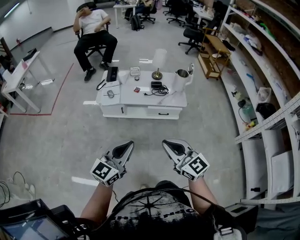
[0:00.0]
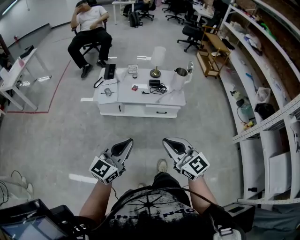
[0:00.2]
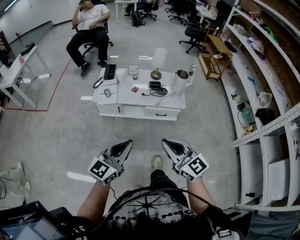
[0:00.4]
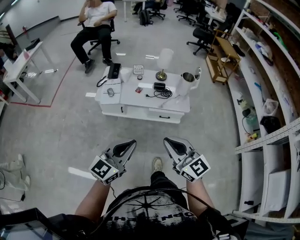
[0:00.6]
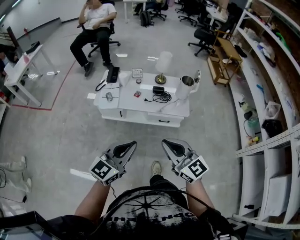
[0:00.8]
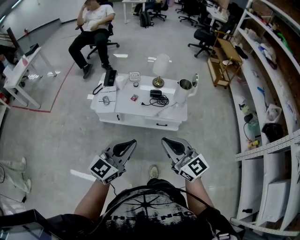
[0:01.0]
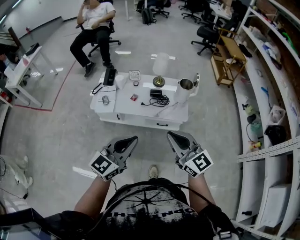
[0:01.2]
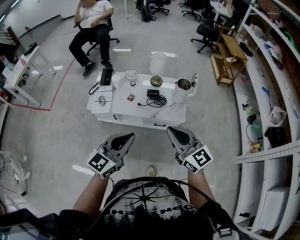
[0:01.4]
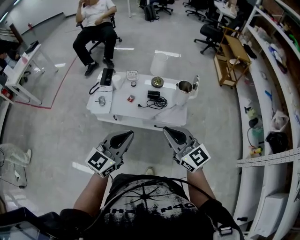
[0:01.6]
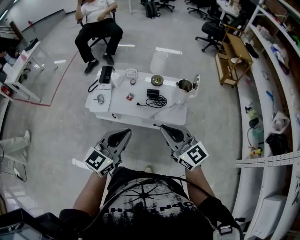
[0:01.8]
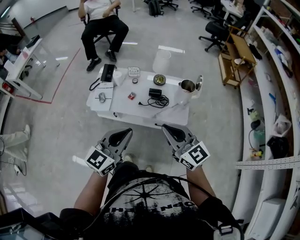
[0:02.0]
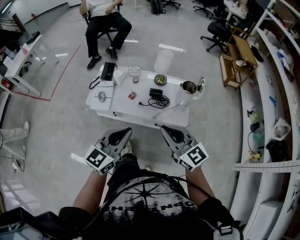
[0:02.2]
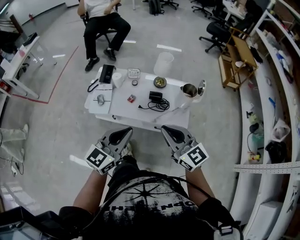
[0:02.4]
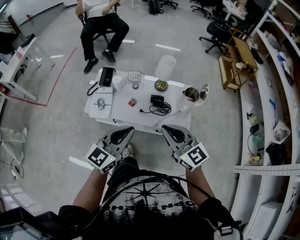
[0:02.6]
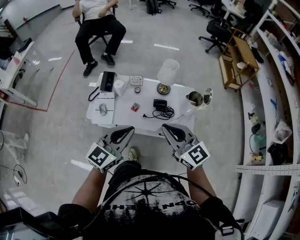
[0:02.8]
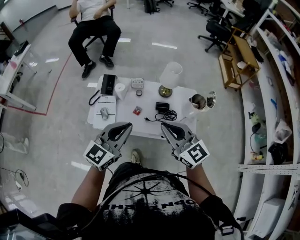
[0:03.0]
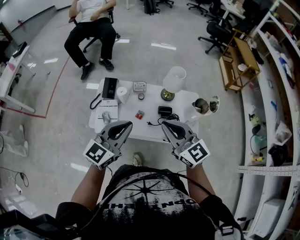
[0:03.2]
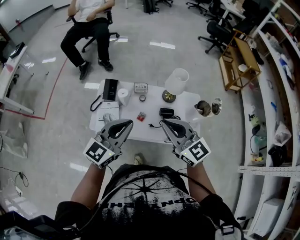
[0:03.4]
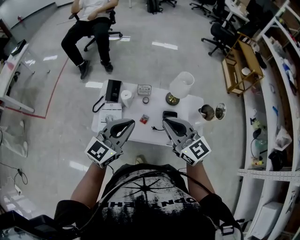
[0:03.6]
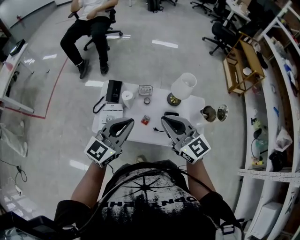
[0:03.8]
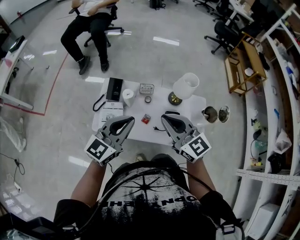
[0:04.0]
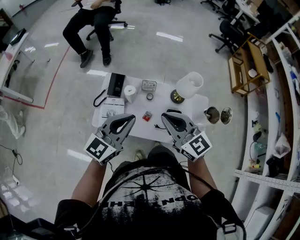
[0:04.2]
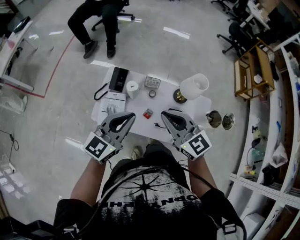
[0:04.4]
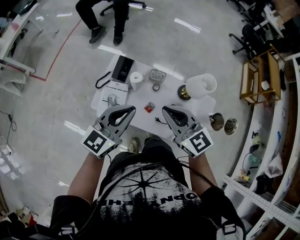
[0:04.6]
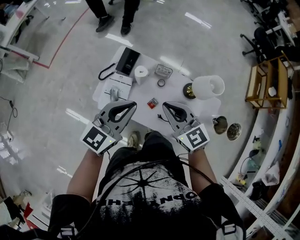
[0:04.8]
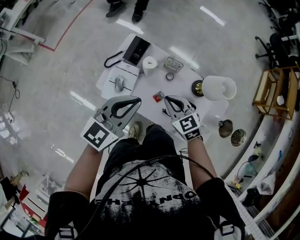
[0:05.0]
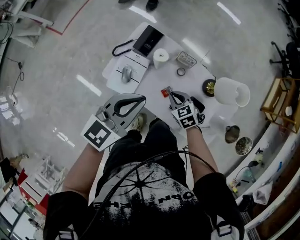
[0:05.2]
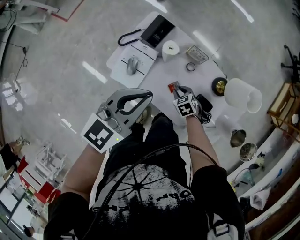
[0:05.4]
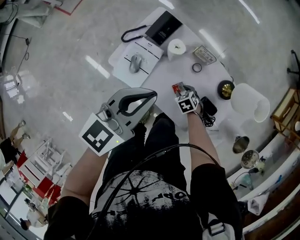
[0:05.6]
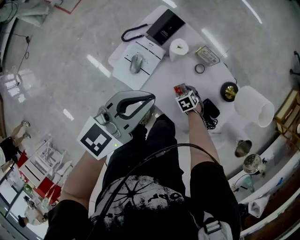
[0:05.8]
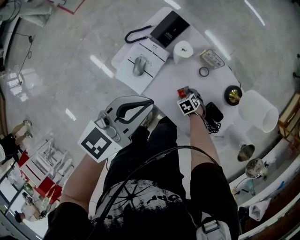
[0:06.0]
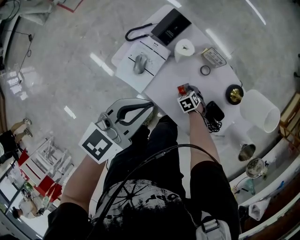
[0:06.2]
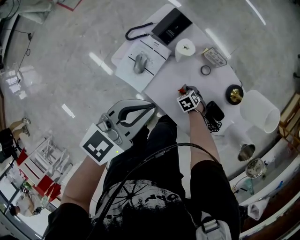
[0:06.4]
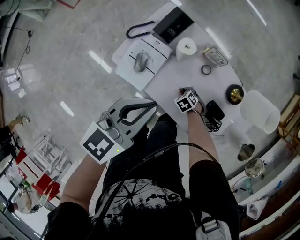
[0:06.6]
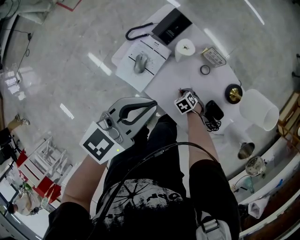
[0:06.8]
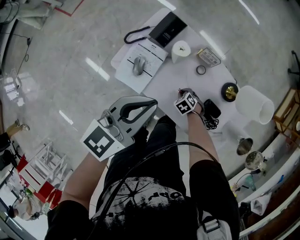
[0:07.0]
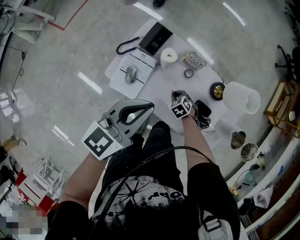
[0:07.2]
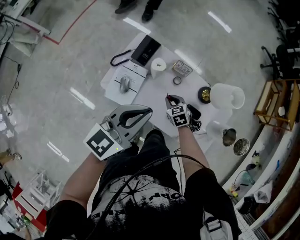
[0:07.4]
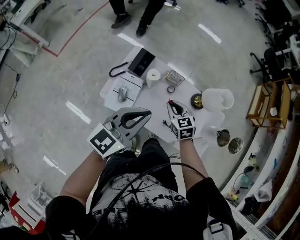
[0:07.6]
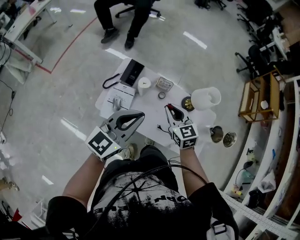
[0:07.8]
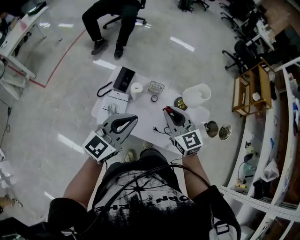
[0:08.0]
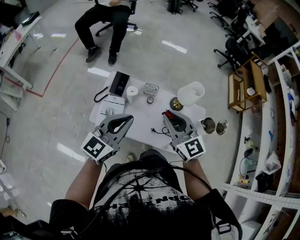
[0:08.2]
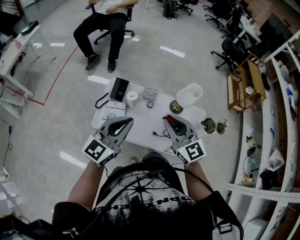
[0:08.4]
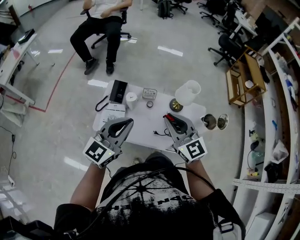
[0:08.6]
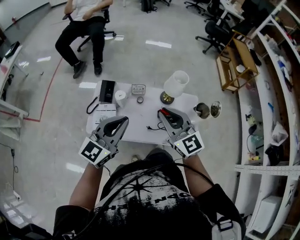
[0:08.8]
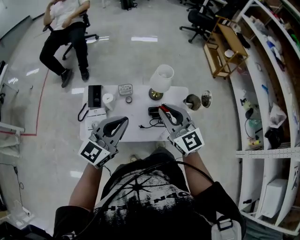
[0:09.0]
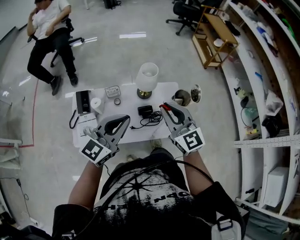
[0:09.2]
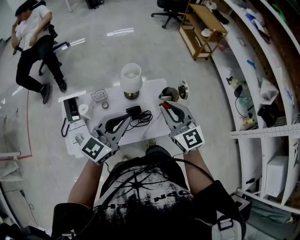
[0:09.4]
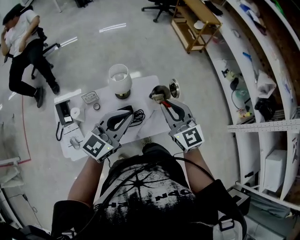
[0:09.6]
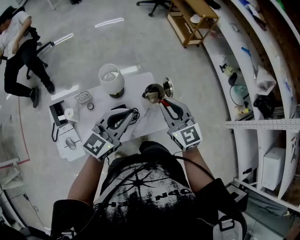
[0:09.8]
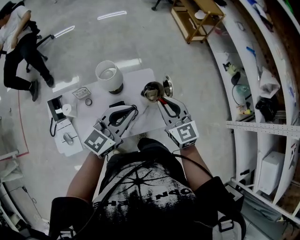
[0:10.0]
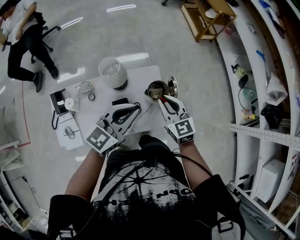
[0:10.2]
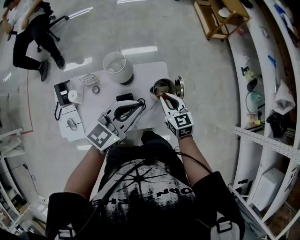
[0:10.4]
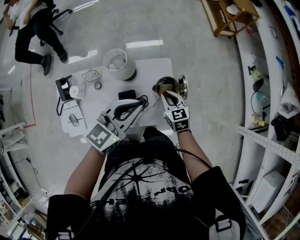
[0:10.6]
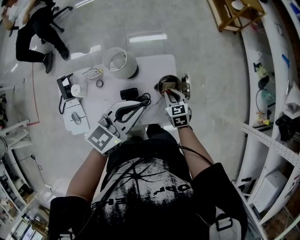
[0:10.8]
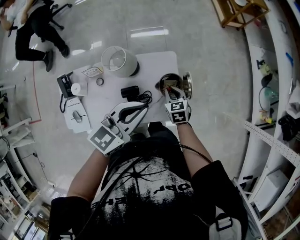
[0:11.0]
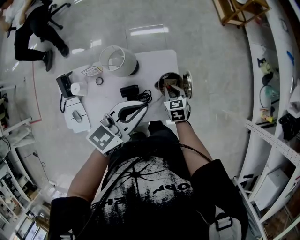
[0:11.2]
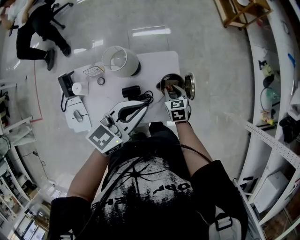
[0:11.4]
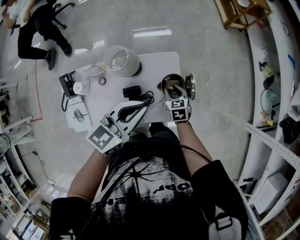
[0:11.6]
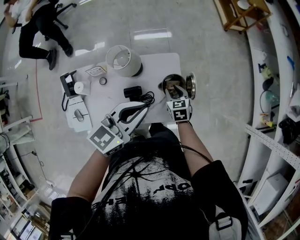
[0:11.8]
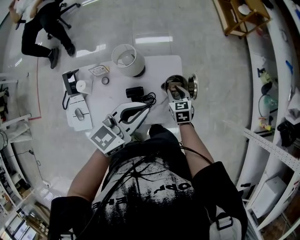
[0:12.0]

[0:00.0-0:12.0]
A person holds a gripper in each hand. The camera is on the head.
0.0 to 1.6 s: Both grippers travel together forward and to the right, approximately 35 cm.
1.6 to 3.0 s: The right gripper heads forward and to the left, covering roughly 25 cm. The left gripper shifts some 20 cm forward.
3.0 to 4.4 s: The grippers both shift forward and to the left by some 20 cm.
4.4 to 6.0 s: The right gripper goes approximately 60 cm downward, points its fingers approximately 70 degrees further downward, and opens up. The left gripper travels downward by approximately 15 cm, and rotates some 30 degrees.
6.0 to 7.6 s: The left gripper is displaced upward by approximately 10 cm, and turns by about 20 degrees. The right gripper is displaced upward by approximately 35 cm, angles its fingers upward, by roughly 40 degrees, and closes up.
7.6 to 9.0 s: The left gripper heads to the right and upward, covering about 10 cm, and turns by roughly 20 degrees. Meanwhile the right gripper is displaced upward, to the right and backward by about 35 cm, and angles its fingers upward, by some 40 degrees.
9.0 to 10.4 s: The right gripper is displaced to the right, downward and forward by some 40 cm, and changes its angle by some 30 degrees. Meanwhile the left gripper heads to the right and forward, covering about 35 cm, and turns by approximately 20 degrees.
10.4 to 12.0 s: The right gripper travels downward by about 10 cm.

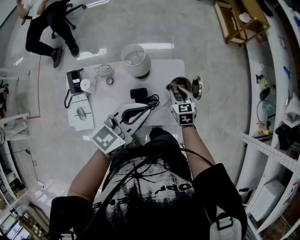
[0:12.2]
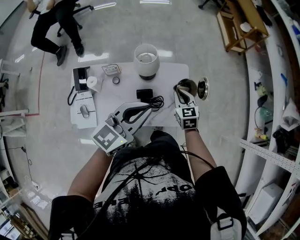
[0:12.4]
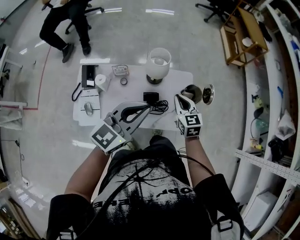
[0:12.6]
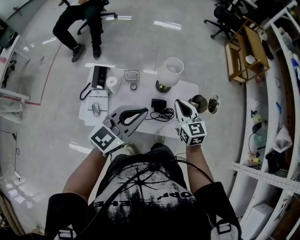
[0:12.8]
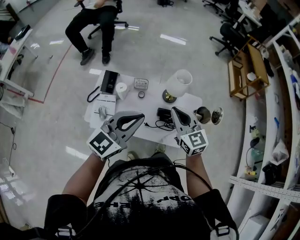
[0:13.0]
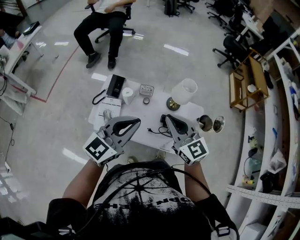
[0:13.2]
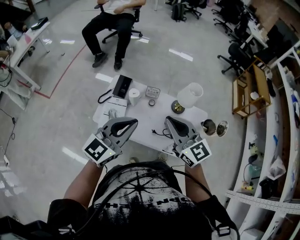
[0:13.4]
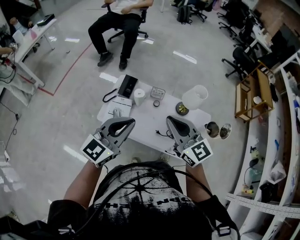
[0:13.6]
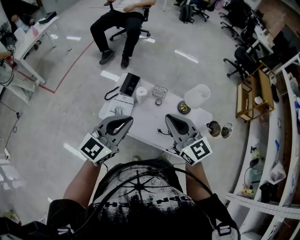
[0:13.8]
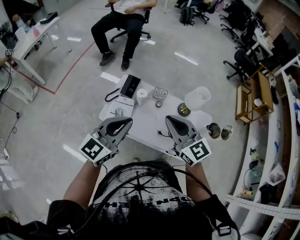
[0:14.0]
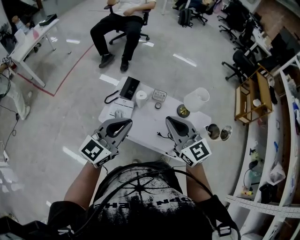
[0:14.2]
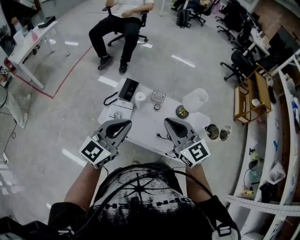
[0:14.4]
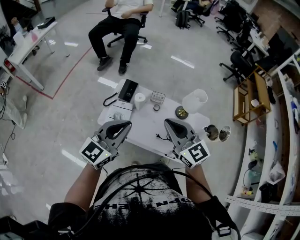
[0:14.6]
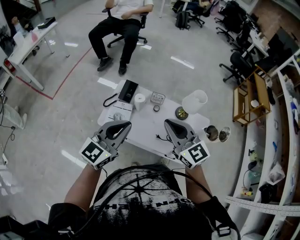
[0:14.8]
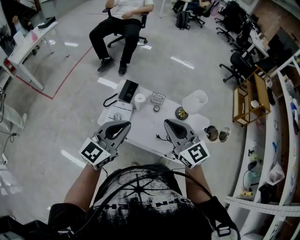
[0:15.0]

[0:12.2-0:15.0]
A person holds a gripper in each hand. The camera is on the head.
12.2 to 13.6 s: The two grippers travel together, roughly 40 cm. The right gripper points its fingers about 40 degrees further upward, and closes; the left gripper changes its angle by about 30 degrees.
13.6 to 15.0 s: The grippers stay close to where they were, moving slightly.

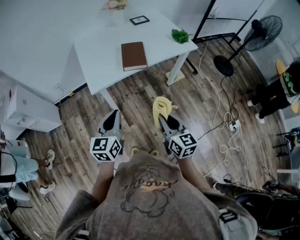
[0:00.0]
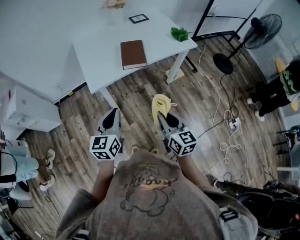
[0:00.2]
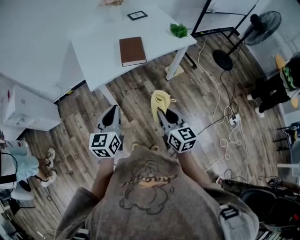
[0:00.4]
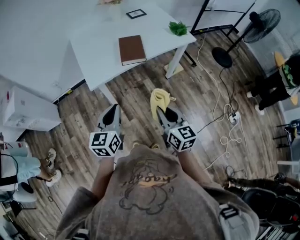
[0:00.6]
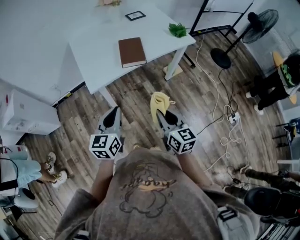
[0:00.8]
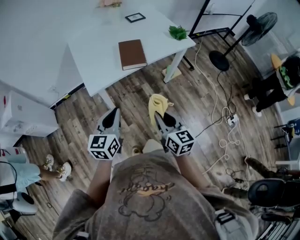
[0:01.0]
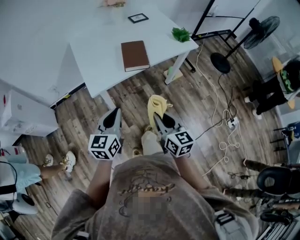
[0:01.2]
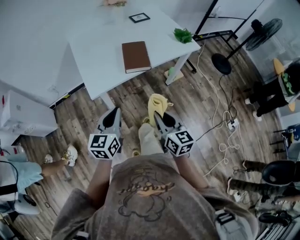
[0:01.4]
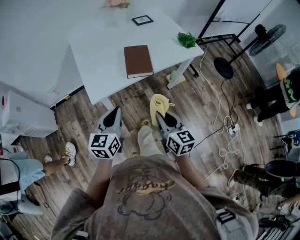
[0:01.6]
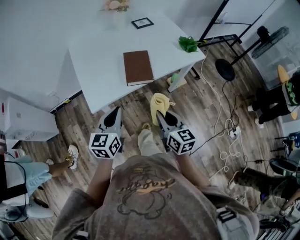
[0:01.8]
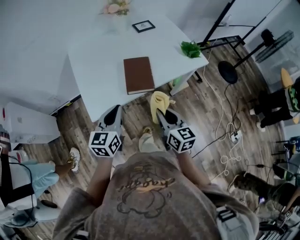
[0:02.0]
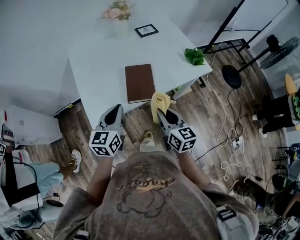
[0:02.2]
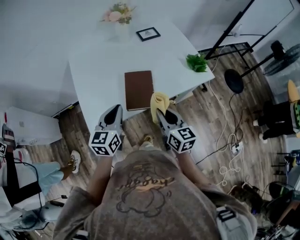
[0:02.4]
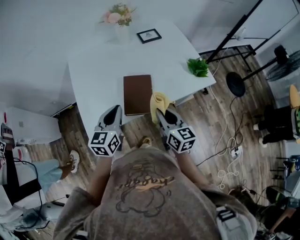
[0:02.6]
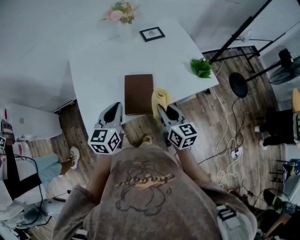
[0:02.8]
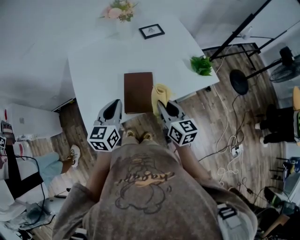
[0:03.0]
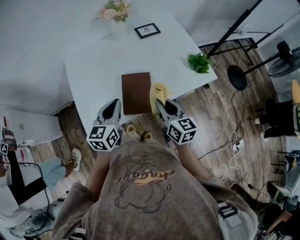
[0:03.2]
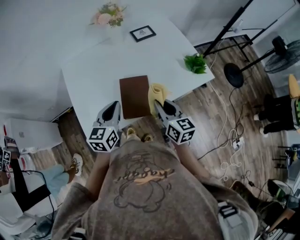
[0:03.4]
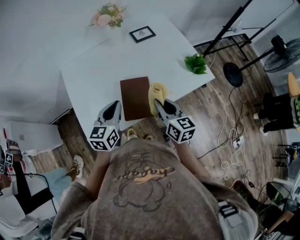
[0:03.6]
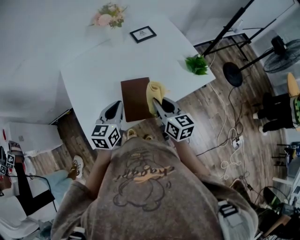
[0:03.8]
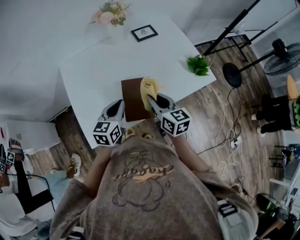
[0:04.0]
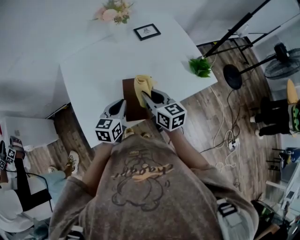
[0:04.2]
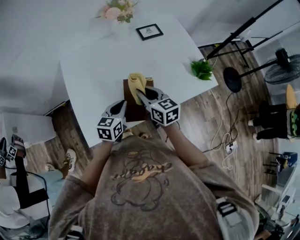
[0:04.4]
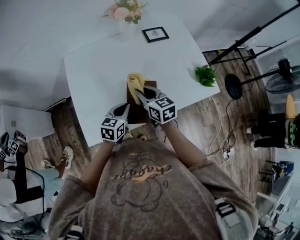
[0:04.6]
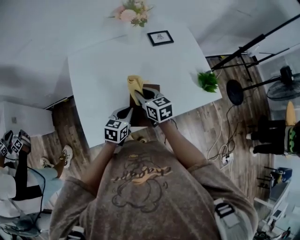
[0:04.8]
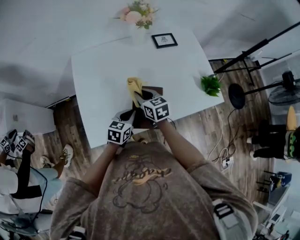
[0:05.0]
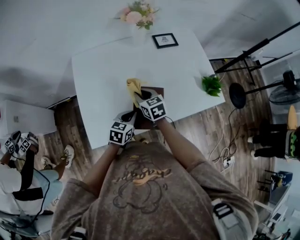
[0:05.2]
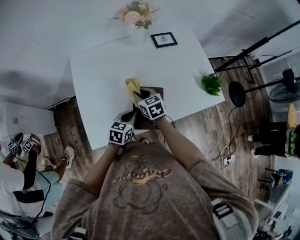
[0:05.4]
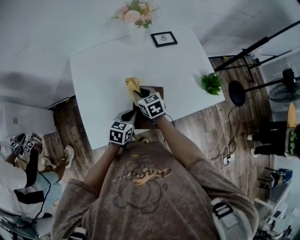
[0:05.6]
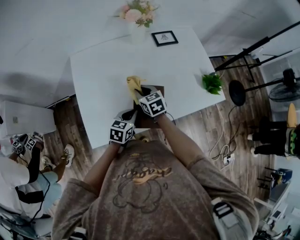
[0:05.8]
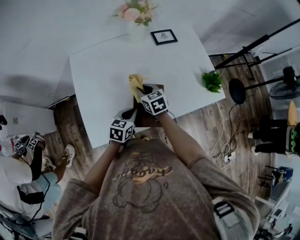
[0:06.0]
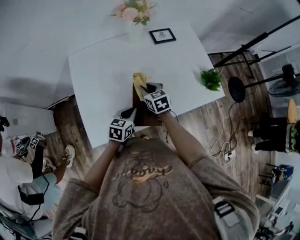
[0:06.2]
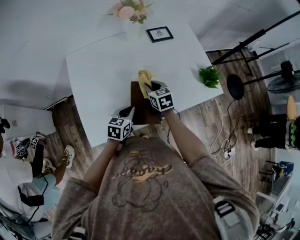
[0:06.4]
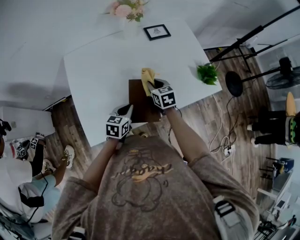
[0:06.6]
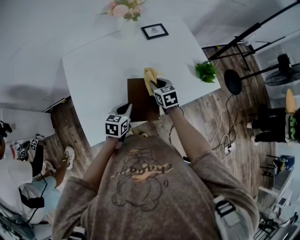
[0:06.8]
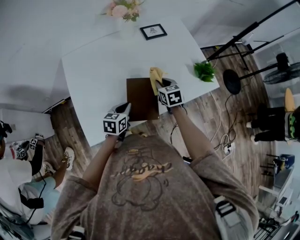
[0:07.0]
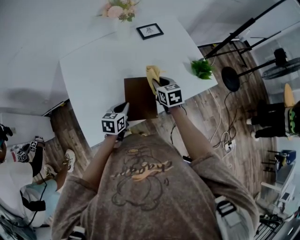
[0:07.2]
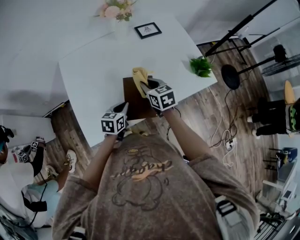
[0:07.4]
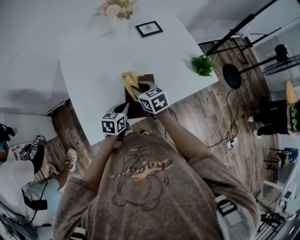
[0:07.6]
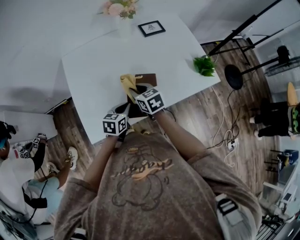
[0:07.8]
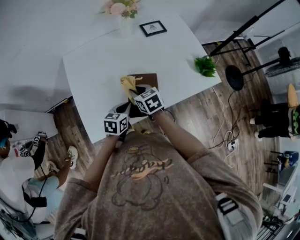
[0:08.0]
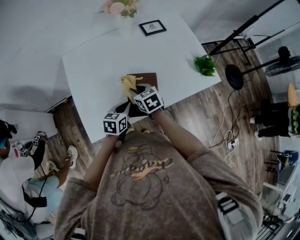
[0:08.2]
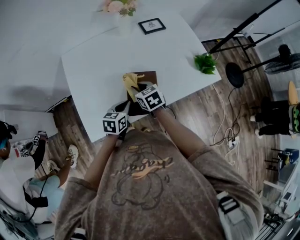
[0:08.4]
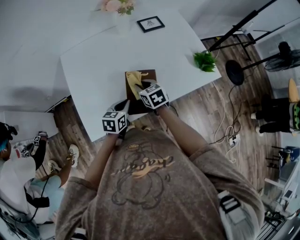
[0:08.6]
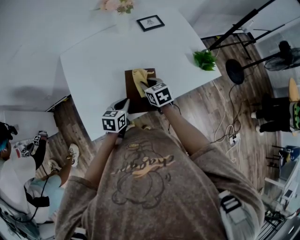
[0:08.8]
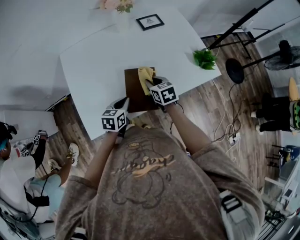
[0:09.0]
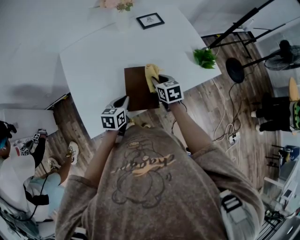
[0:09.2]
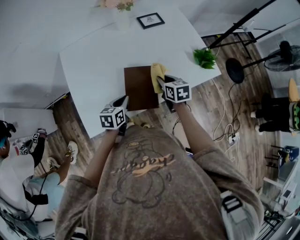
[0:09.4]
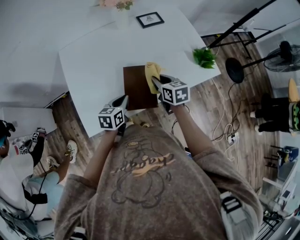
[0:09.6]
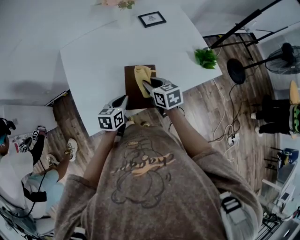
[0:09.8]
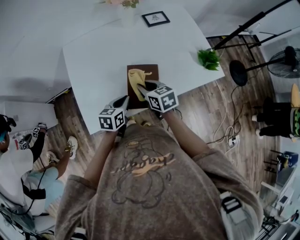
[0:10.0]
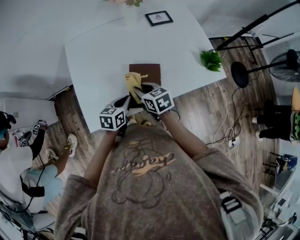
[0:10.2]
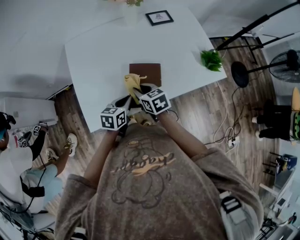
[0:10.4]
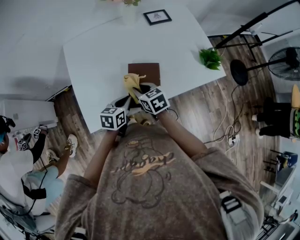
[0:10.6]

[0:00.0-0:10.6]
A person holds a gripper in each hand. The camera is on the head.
0.0 to 1.6 s: The right gripper travels forward and to the left by some 10 cm. Meanwhile the left gripper heads forward, covering approximately 10 cm.
1.6 to 3.0 s: The grippers both shift forward by roughly 30 cm.
3.0 to 4.6 s: The right gripper goes roughly 20 cm forward and to the left, while the left gripper moves downward and forward, roughly 15 cm.
4.6 to 6.0 s: The right gripper shifts some 10 cm downward and forward.
6.0 to 7.6 s: The right gripper travels backward by about 5 cm, and goes to the right and returns, roughly 15 cm each way.
7.6 to 9.0 s: The right gripper goes about 10 cm to the right and downward.
9.0 to 10.6 s: The right gripper goes roughly 10 cm to the left and backward.
